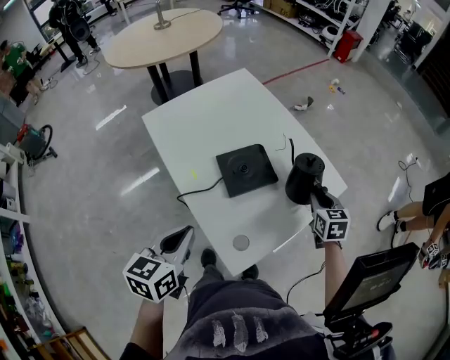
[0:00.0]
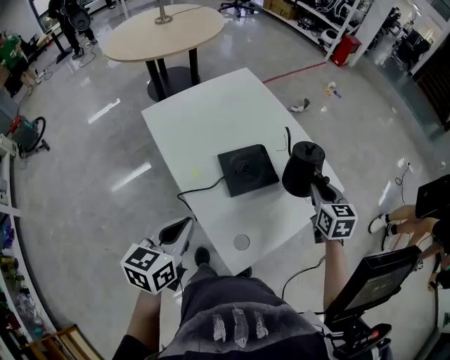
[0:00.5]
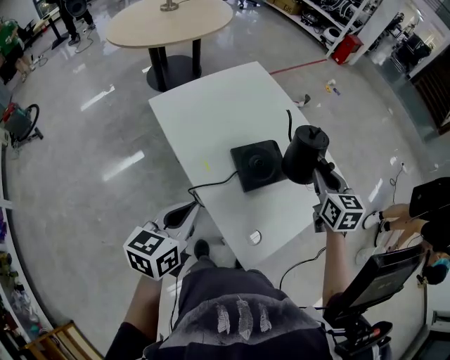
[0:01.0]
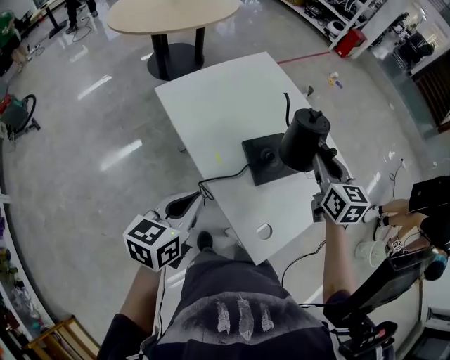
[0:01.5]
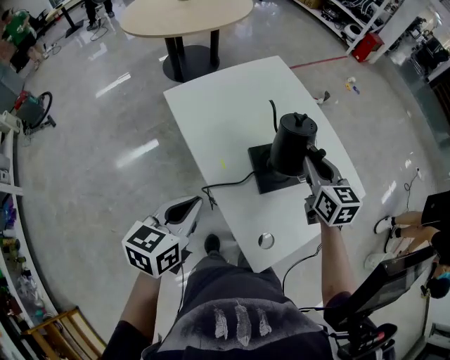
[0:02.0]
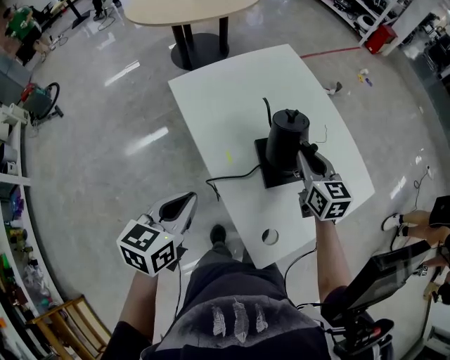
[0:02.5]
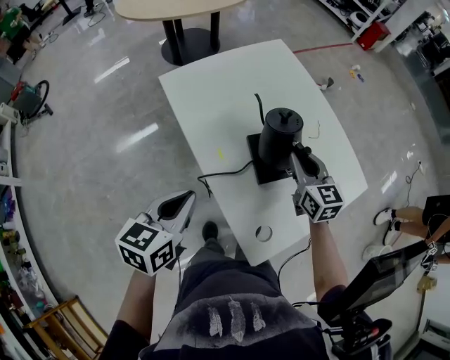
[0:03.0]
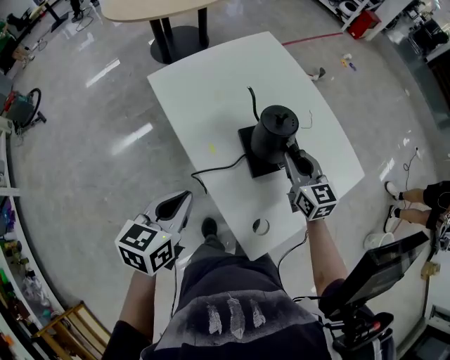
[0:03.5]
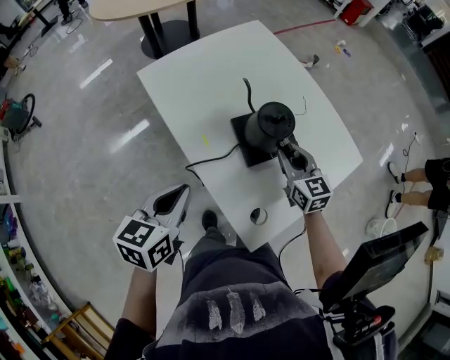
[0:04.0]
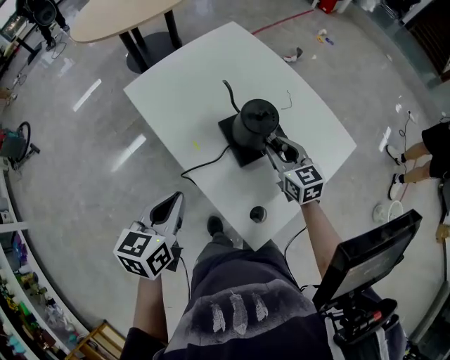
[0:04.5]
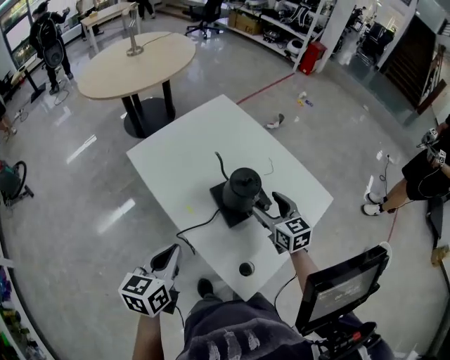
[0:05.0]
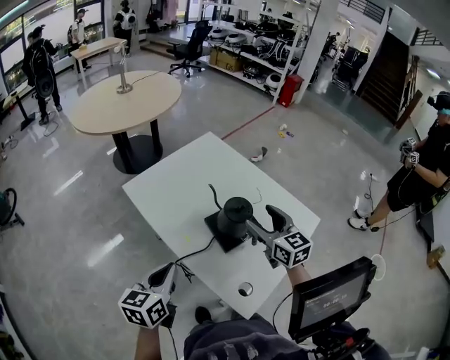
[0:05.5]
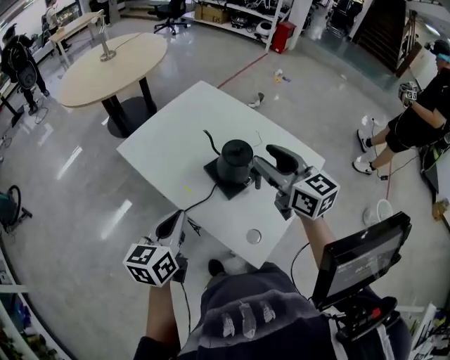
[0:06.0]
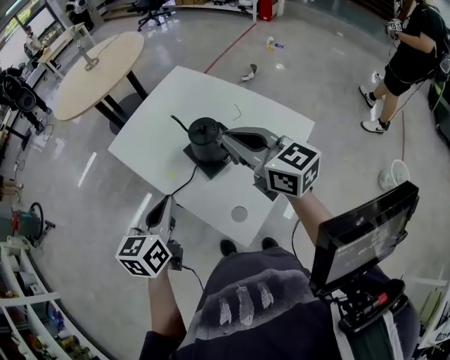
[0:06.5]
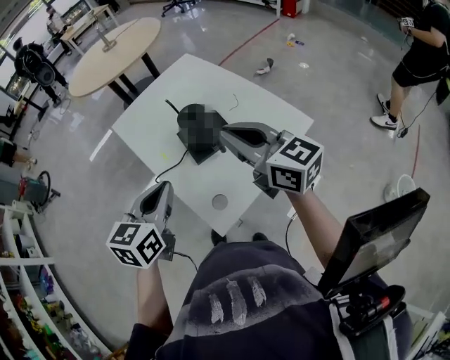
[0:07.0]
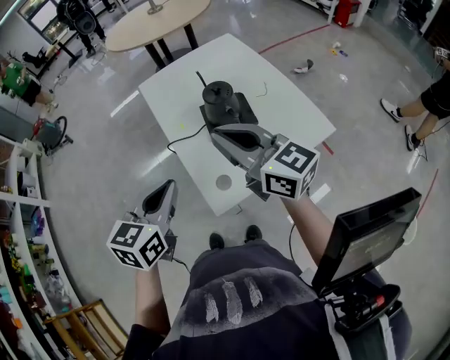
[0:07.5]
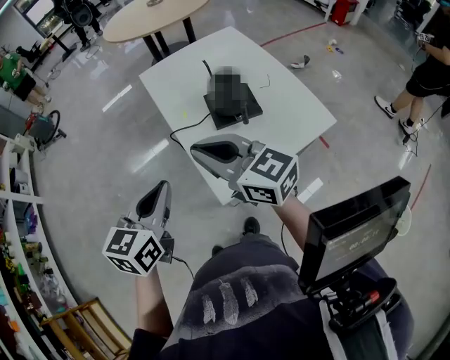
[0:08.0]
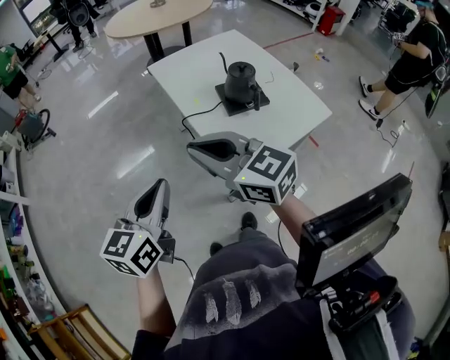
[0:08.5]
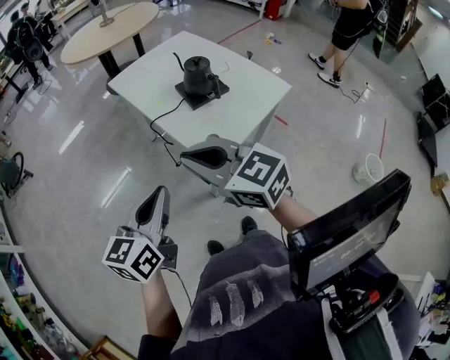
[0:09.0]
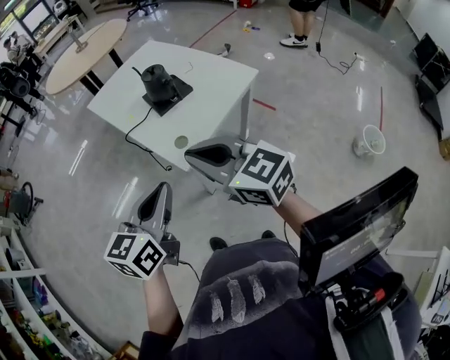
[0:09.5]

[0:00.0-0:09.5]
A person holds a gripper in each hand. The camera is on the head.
0:00.0 to 0:02.0: The right gripper travels to the left and upward by approximately 25 cm, and rotates approximately 20 degrees, while the left gripper travels to the left by some 10 cm.
0:02.0 to 0:04.0: The right gripper shifts some 10 cm downward.
0:04.0 to 0:05.5: The right gripper heads upward, covering about 15 cm, and opens up.
0:05.5 to 0:07.5: The right gripper ends up approximately 25 cm from where it was, changes its angle by approximately 40 degrees, and closes up. The left gripper moves about 25 cm.
0:07.5 to 0:09.5: Both grippers travel together backward, some 20 cm. The left gripper goes to the left and returns, roughly 15 cm each way, and swivels some 20 degrees, while the right gripper travels to the left and back again, approximately 20 cm each way, and swivels about 20 degrees.

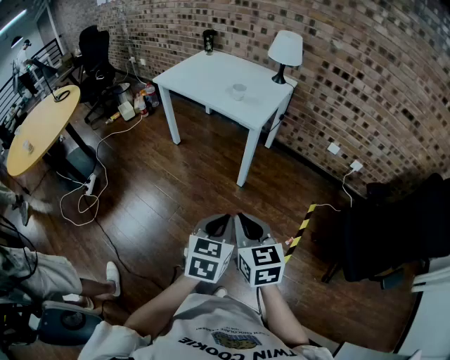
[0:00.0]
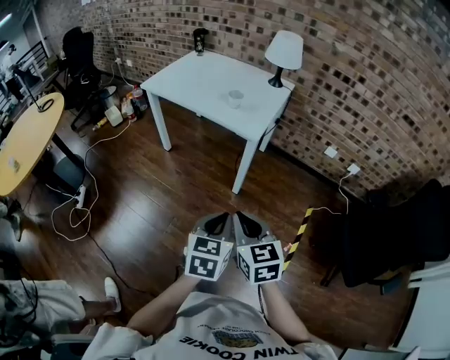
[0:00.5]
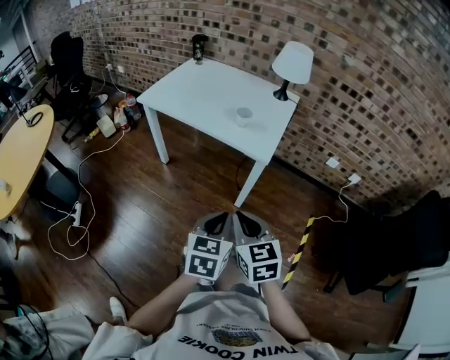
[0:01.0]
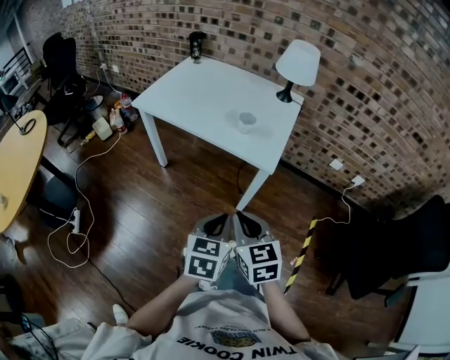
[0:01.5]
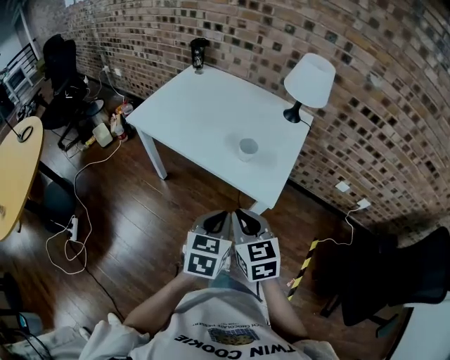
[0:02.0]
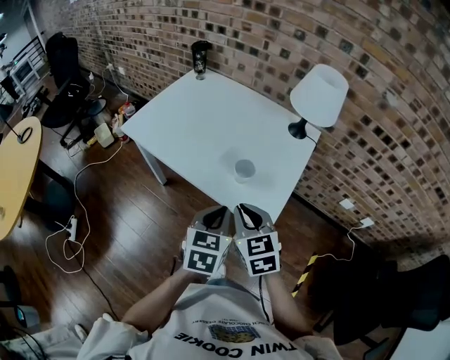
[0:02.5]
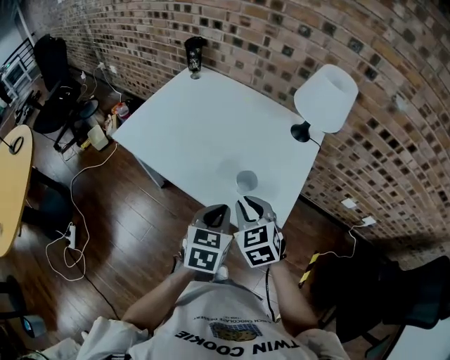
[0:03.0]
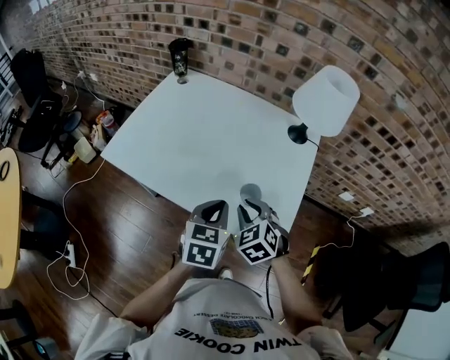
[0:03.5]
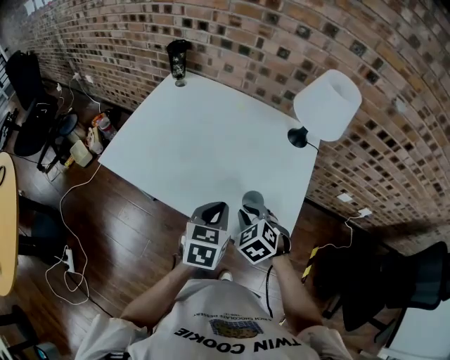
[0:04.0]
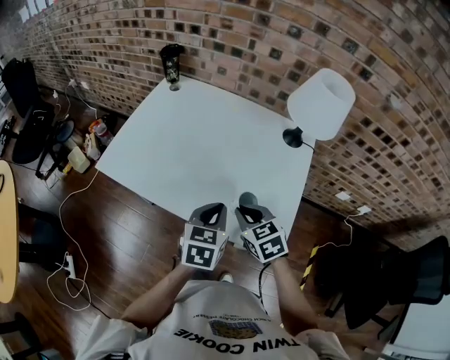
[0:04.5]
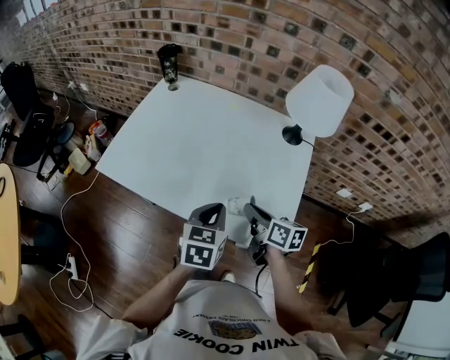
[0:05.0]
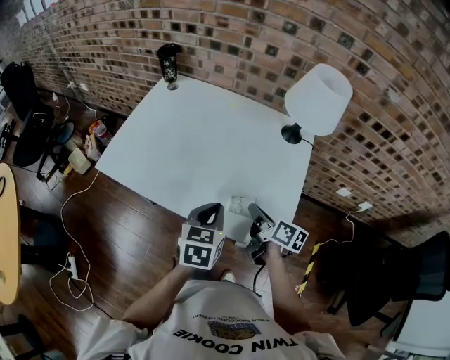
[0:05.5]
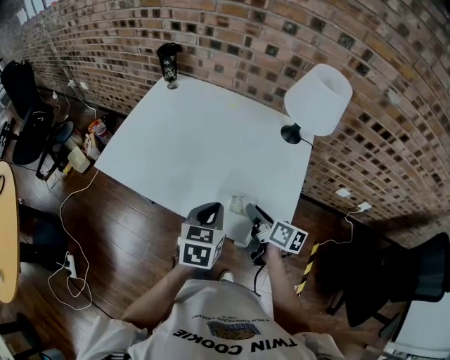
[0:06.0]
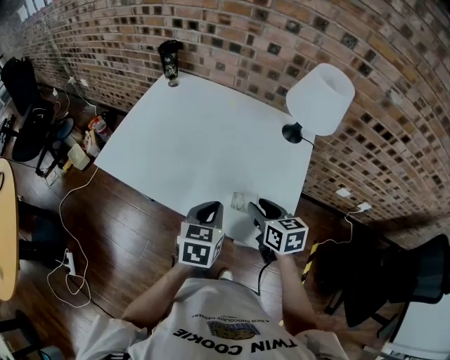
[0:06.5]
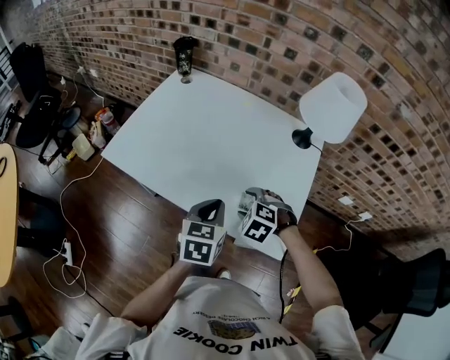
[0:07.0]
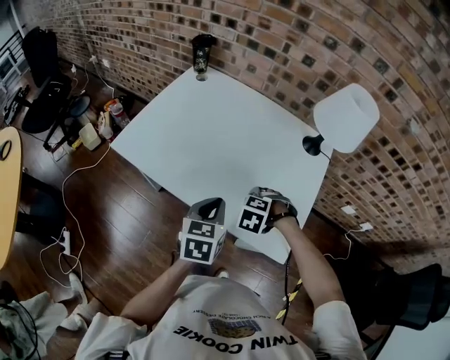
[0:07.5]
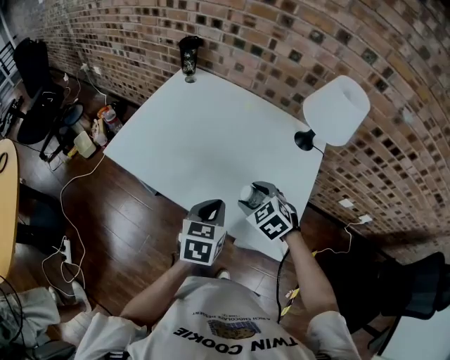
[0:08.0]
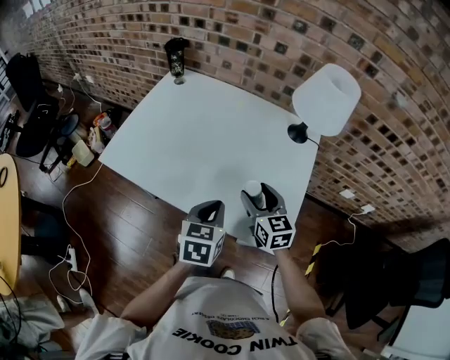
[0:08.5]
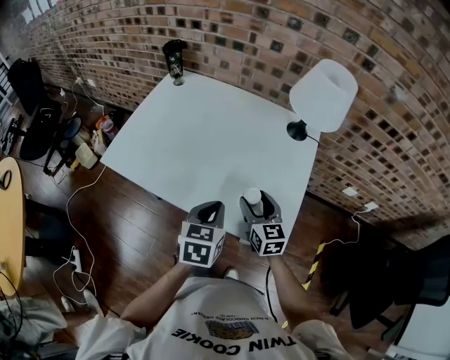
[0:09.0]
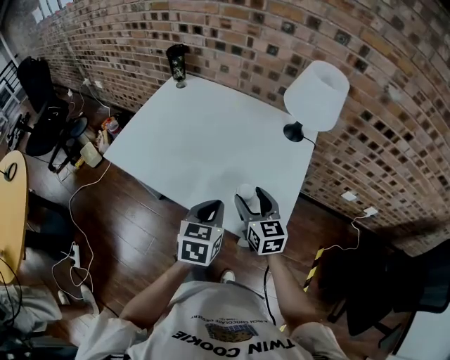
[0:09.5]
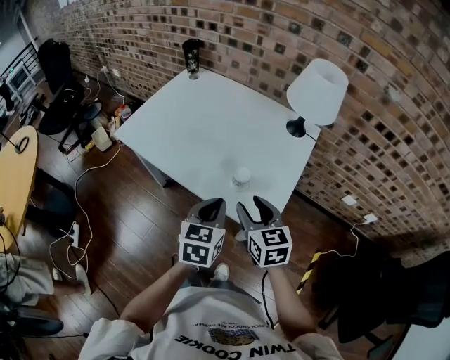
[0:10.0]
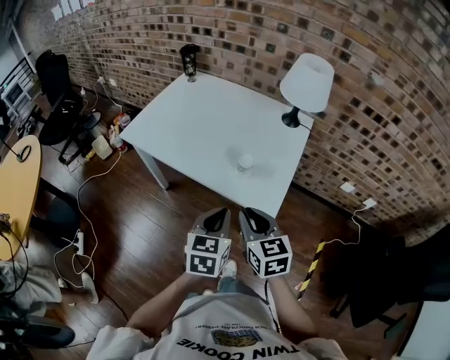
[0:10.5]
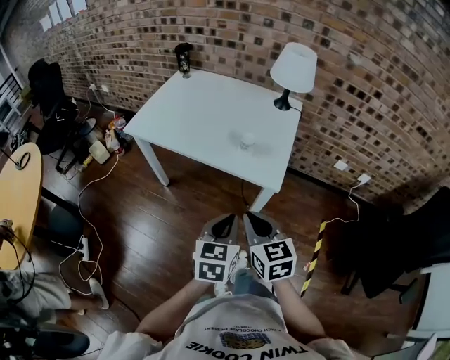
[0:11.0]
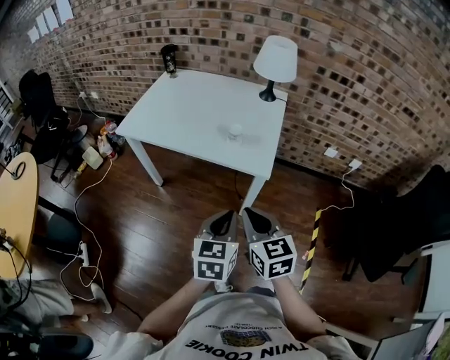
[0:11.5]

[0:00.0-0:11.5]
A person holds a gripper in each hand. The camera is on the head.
0:00.0 to 0:02.0: Both grippers are carried forward, some 50 cm.
0:02.0 to 0:04.0: The left gripper travels forward by approximately 25 cm, while the right gripper heads forward and downward, covering some 30 cm, and swivels roughly 40 degrees.
0:04.0 to 0:06.0: The right gripper goes roughly 5 cm to the right, and twists some 80 degrees clockwise, seen from behind.
0:06.0 to 0:07.5: The right gripper changes place by some 10 cm, rotates around the line of its fingers by roughly 100 degrees, counterclockwise from behind, and opens, while the left gripper moves roughly 5 cm.
0:07.5 to 0:09.5: The right gripper is displaced upward by roughly 10 cm, and tips its fingers upward by about 60 degrees, while the left gripper ends up roughly 10 cm from where it was.
0:09.5 to 0:11.5: Both grippers move backward, about 35 cm. The right gripper closes.

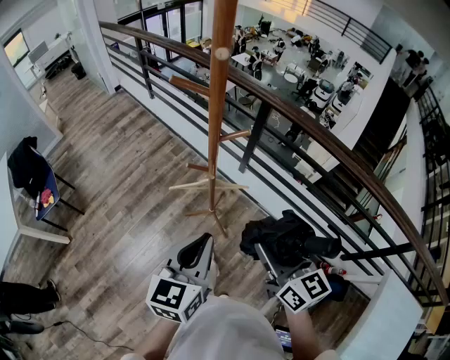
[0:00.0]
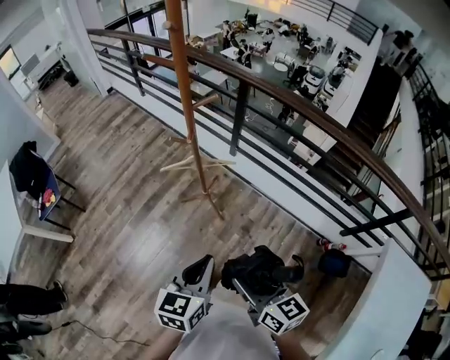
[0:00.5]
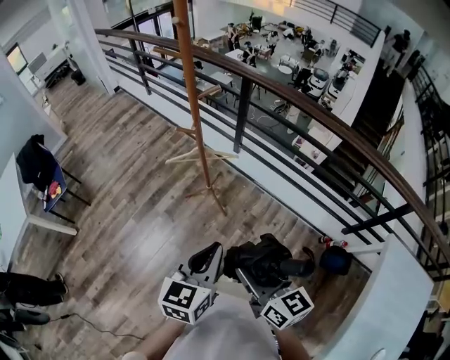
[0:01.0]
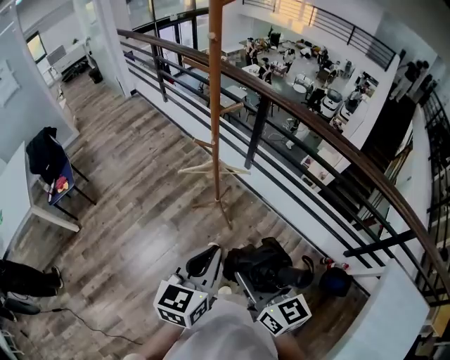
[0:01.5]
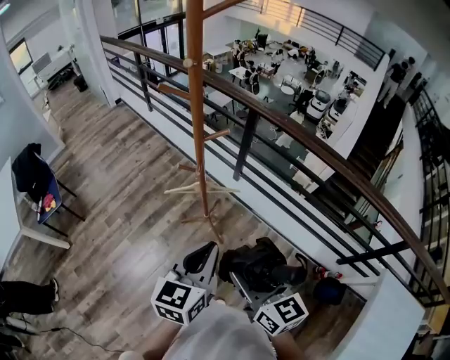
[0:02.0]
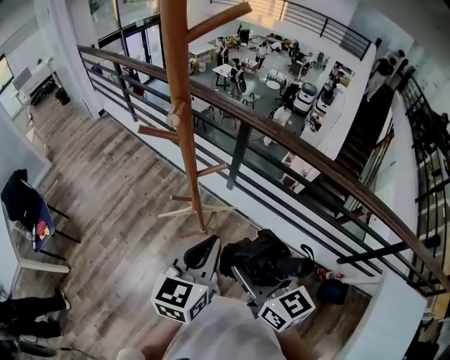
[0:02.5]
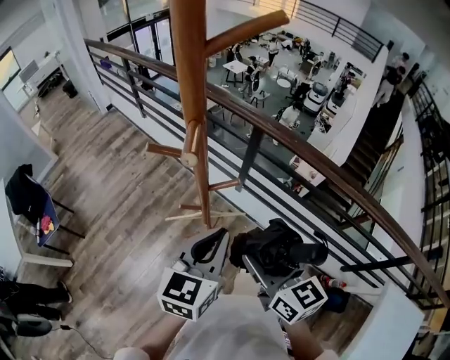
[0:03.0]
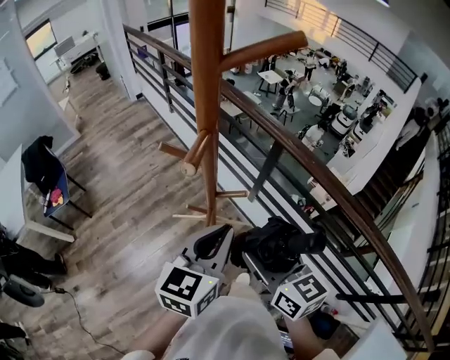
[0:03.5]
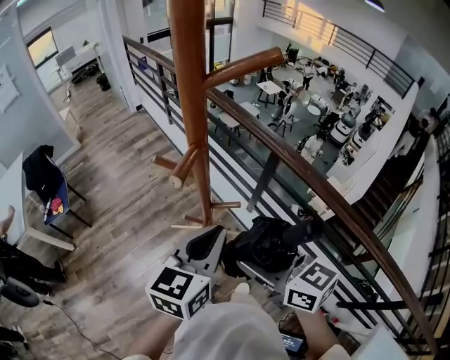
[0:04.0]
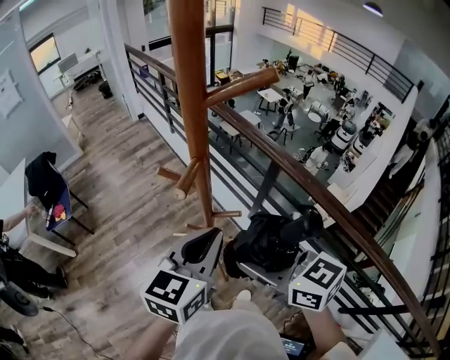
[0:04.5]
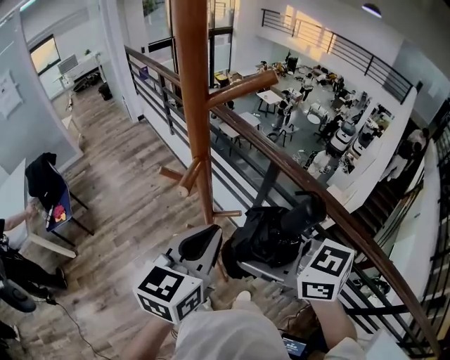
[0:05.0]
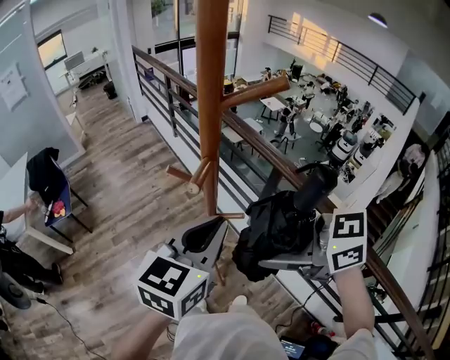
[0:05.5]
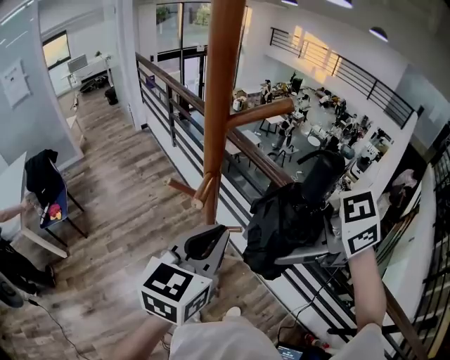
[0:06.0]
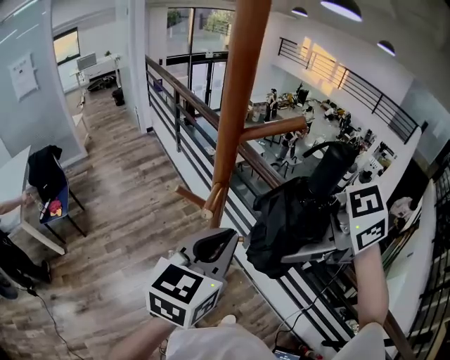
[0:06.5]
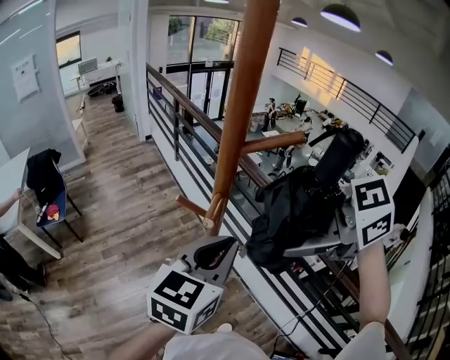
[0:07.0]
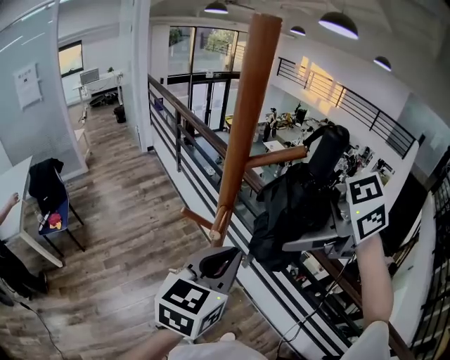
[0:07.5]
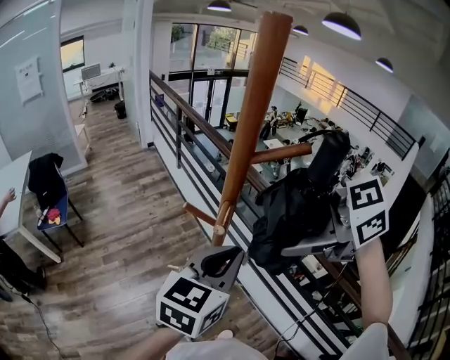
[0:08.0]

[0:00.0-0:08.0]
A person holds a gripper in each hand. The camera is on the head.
0:00.0 to 0:02.0: The left gripper travels to the right by some 5 cm, and travels backward and back again, some 20 cm each way. The right gripper moves backward, approximately 10 cm.
0:02.0 to 0:04.0: The two grippers go roughly 25 cm forward. The right gripper swivels approximately 30 degrees.
0:04.0 to 0:06.0: The left gripper is displaced upward by approximately 10 cm; the right gripper travels upward by about 15 cm, and changes its angle by about 40 degrees.
0:06.0 to 0:08.0: The right gripper moves upward, roughly 5 cm.
